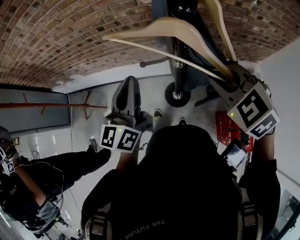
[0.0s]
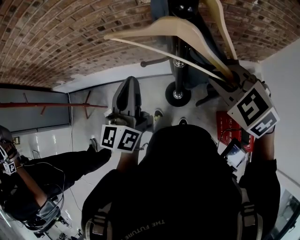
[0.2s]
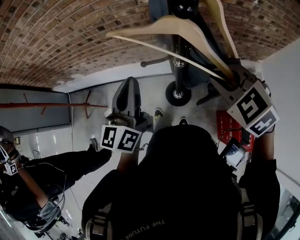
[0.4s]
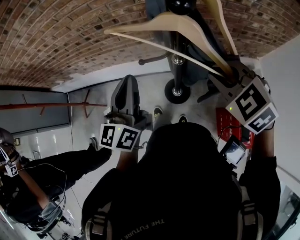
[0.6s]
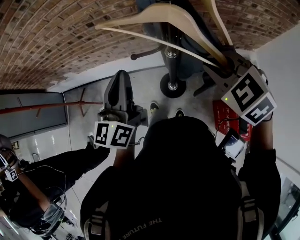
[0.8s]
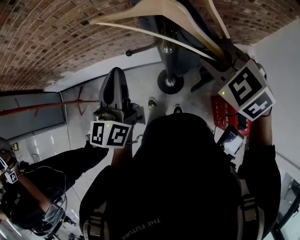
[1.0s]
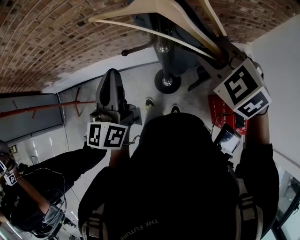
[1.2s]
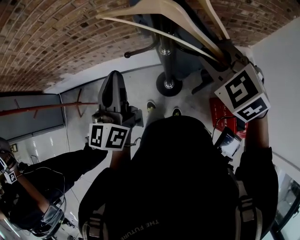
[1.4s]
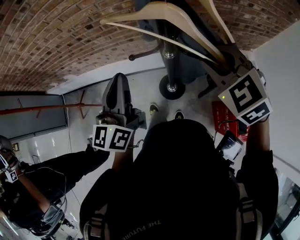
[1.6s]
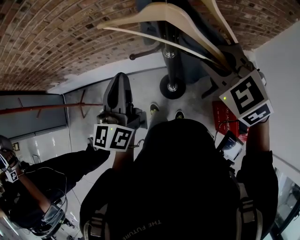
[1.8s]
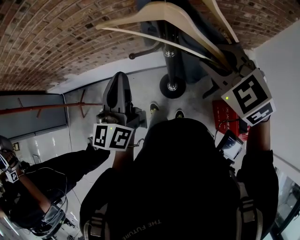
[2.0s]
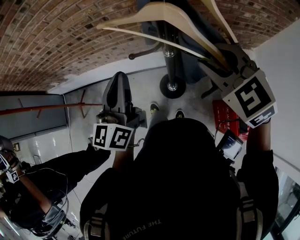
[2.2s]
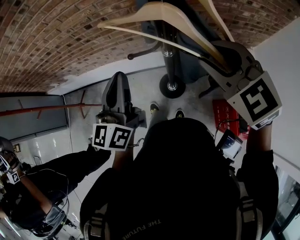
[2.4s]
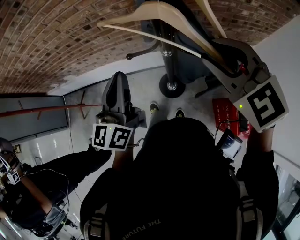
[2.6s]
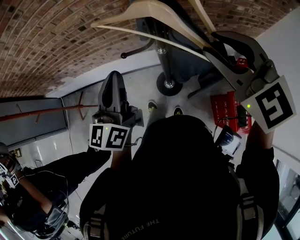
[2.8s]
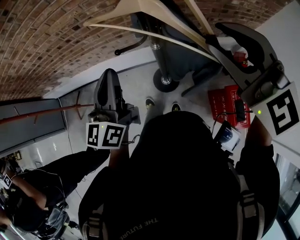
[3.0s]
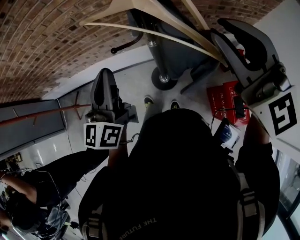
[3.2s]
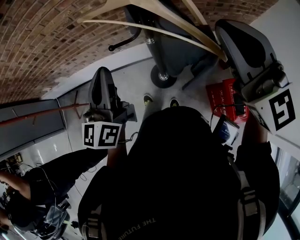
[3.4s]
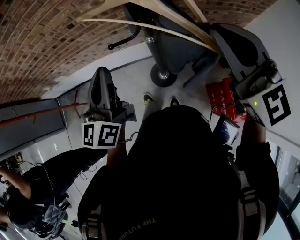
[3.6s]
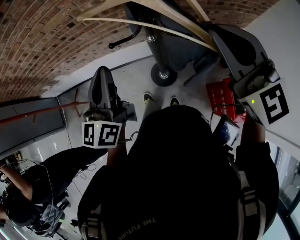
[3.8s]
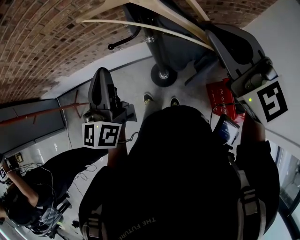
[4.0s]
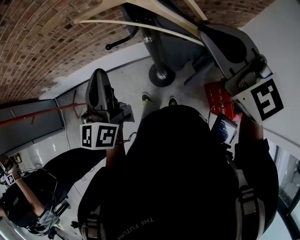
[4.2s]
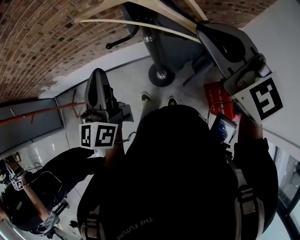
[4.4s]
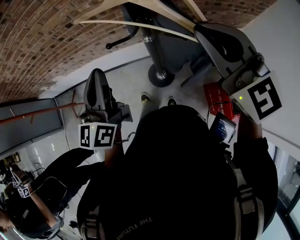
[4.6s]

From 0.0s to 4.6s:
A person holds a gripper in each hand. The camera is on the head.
From 0.0s to 1.6s: There are only small adjustments of the grippers.
From 1.6s to 3.0s: The right gripper is displaced upward by roughly 10 cm, and turns by roughly 30 degrees.
From 3.0s to 4.6s: The right gripper closes up.

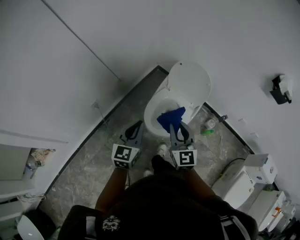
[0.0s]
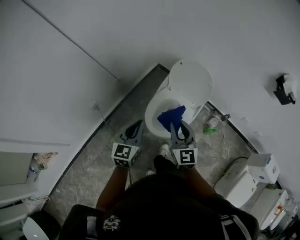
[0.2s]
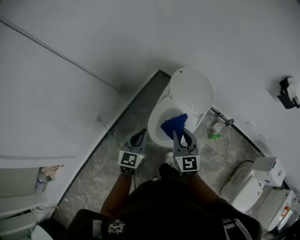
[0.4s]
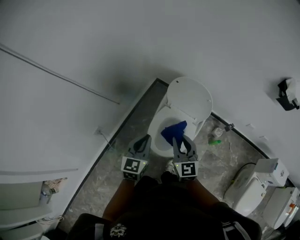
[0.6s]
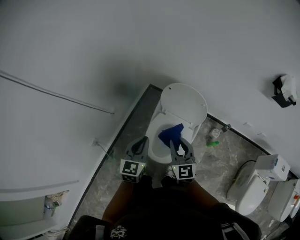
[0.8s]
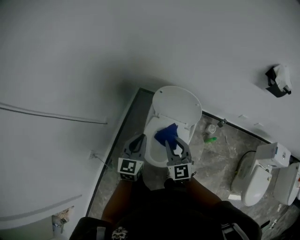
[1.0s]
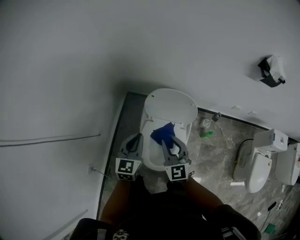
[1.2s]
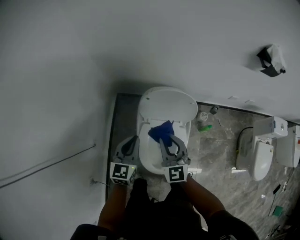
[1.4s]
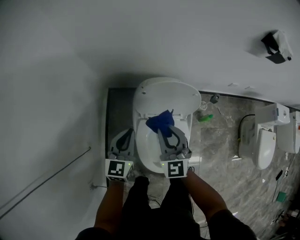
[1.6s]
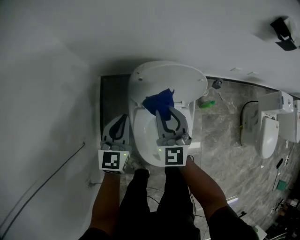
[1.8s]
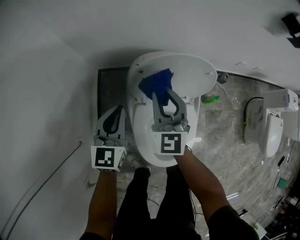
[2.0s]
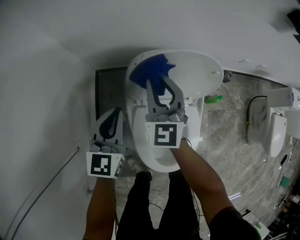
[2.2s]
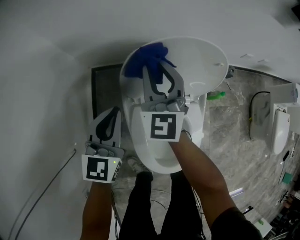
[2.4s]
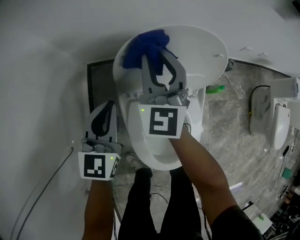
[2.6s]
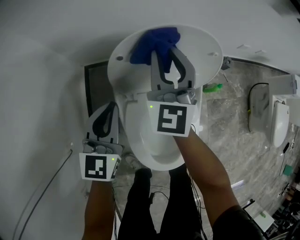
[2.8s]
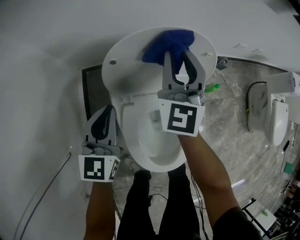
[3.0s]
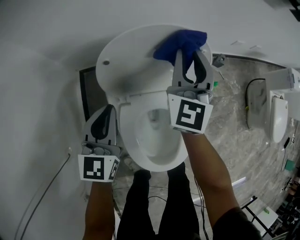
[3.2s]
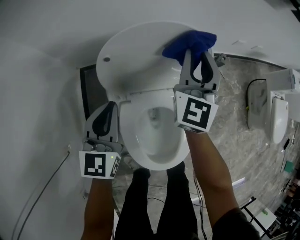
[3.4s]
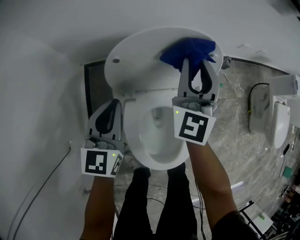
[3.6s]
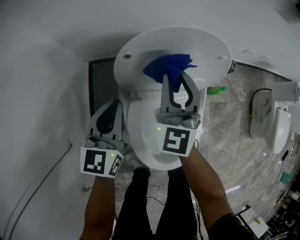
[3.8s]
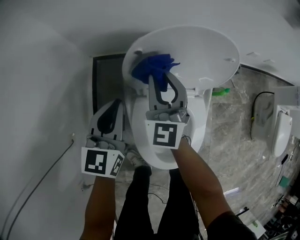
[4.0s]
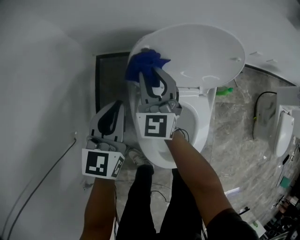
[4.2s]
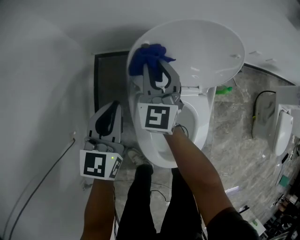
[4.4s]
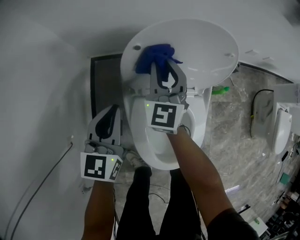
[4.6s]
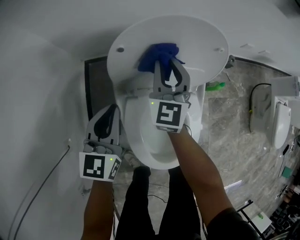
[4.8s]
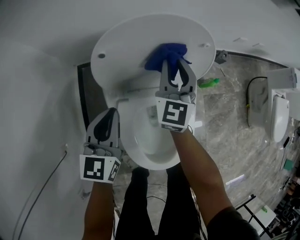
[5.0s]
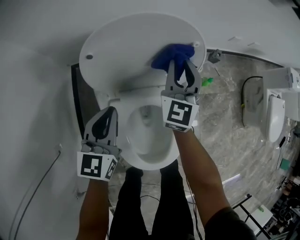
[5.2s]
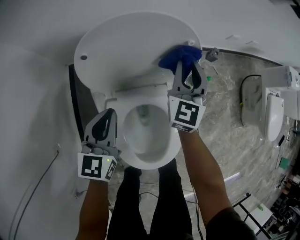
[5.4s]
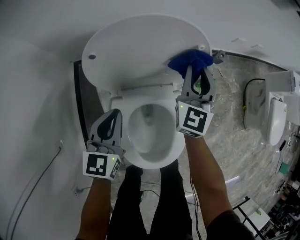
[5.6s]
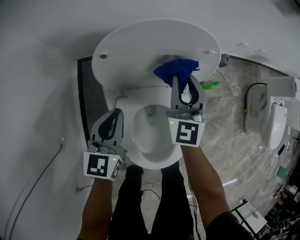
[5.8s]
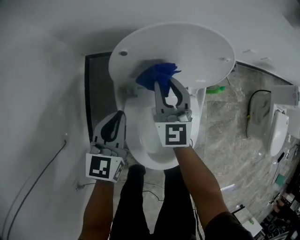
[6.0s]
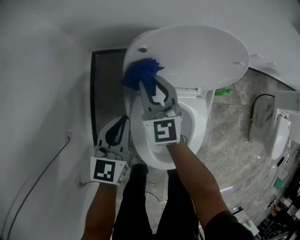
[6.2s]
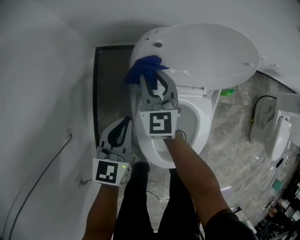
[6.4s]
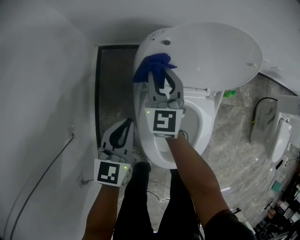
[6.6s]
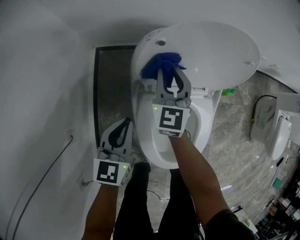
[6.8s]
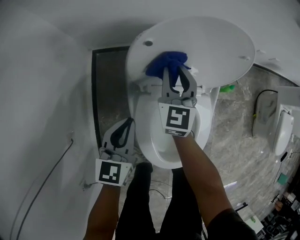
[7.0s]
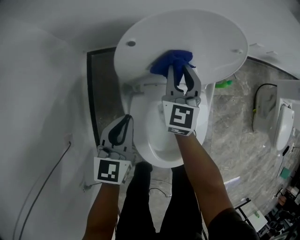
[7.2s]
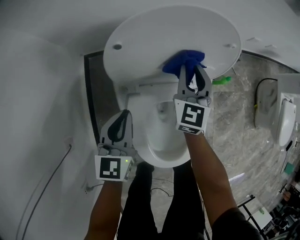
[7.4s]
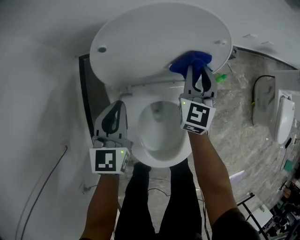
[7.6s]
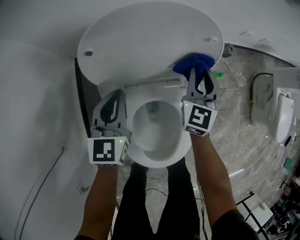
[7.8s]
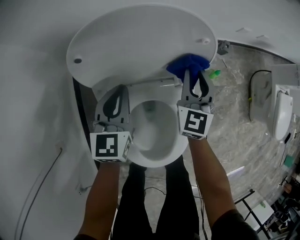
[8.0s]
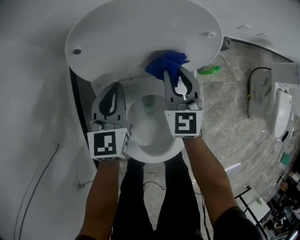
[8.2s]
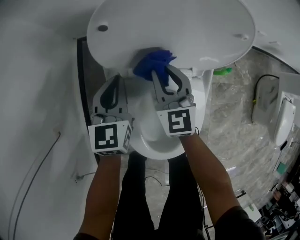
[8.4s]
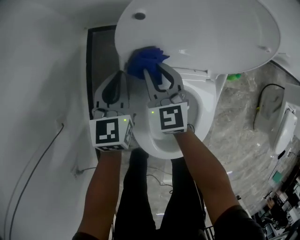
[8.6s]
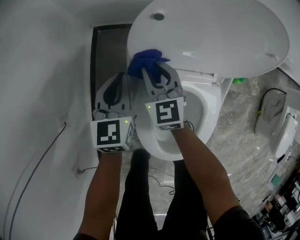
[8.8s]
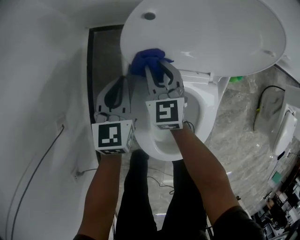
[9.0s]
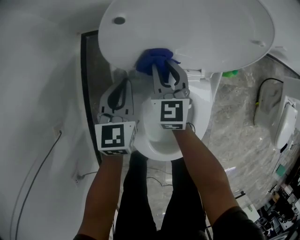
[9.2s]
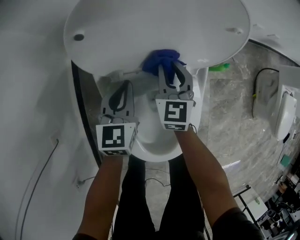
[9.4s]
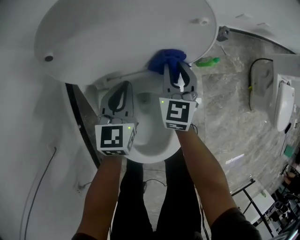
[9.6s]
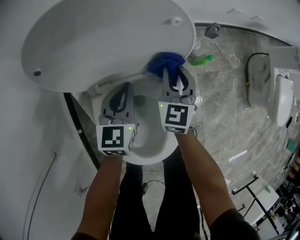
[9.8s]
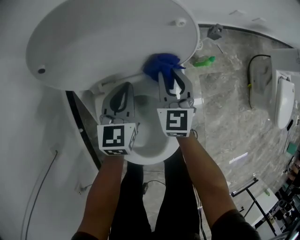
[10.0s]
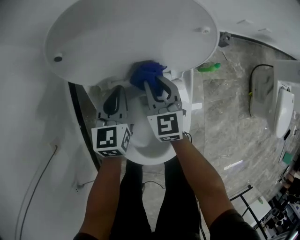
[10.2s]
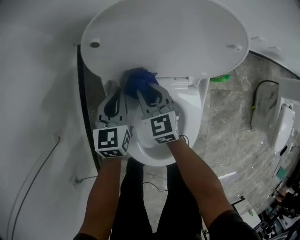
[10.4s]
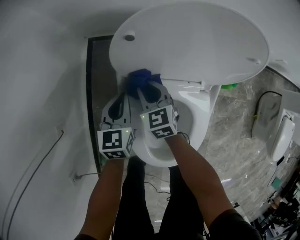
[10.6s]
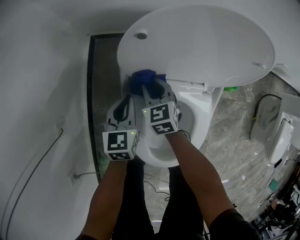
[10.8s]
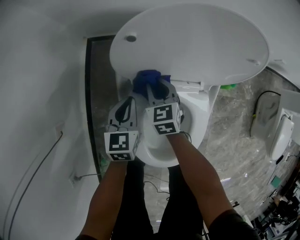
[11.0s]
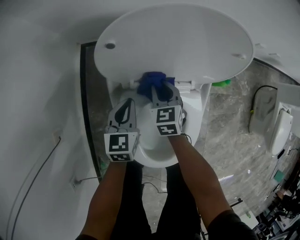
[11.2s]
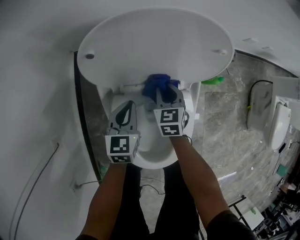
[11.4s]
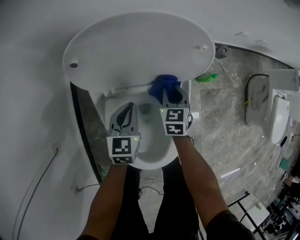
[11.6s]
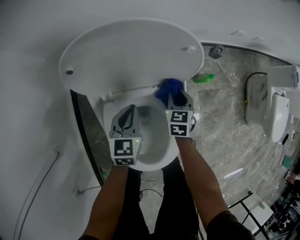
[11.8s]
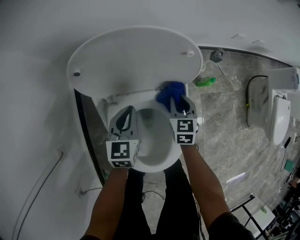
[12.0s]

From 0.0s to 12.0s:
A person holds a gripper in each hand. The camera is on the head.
From 0.0s to 1.6s: The right gripper changes place by about 35 cm, and swivels roughly 30 degrees, while the left gripper ends up about 40 cm from where it was, and changes its angle by roughly 30 degrees.
From 1.6s to 3.0s: The left gripper goes approximately 15 cm downward and forward. The right gripper is displaced forward by roughly 20 cm, and changes its angle by roughly 30 degrees.
From 3.0s to 4.4s: The right gripper goes about 15 cm to the left and downward, while the left gripper shifts by approximately 5 cm.
From 4.4s to 6.0s: The right gripper travels to the right and back again, about 25 cm each way; the left gripper travels to the right by approximately 5 cm.
From 6.0s to 7.6s: The right gripper goes some 15 cm to the right, and rotates about 20 degrees.
From 7.6s to 9.0s: The right gripper ends up roughly 25 cm from where it was, and changes its angle by approximately 30 degrees. Meanwhile the left gripper shifts by some 10 cm.
From 10.4s to 12.0s: The right gripper shifts by approximately 20 cm, and swivels approximately 30 degrees. The left gripper shifts by approximately 10 cm.

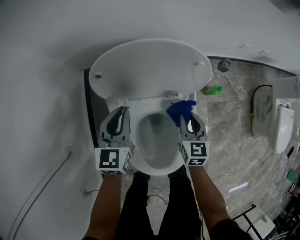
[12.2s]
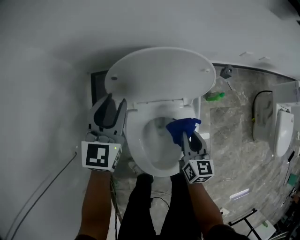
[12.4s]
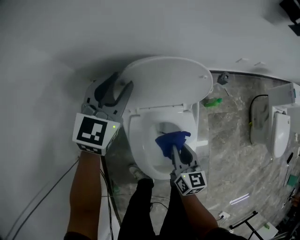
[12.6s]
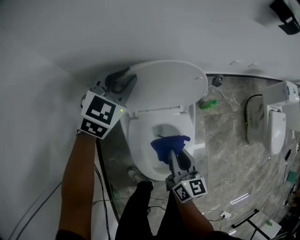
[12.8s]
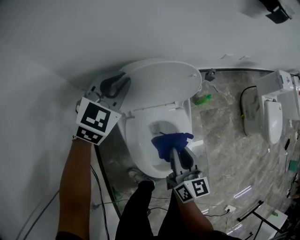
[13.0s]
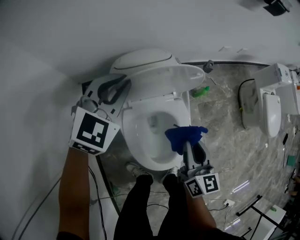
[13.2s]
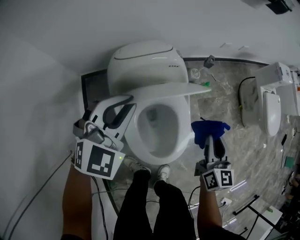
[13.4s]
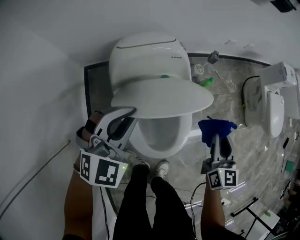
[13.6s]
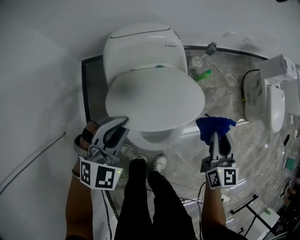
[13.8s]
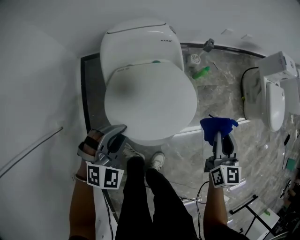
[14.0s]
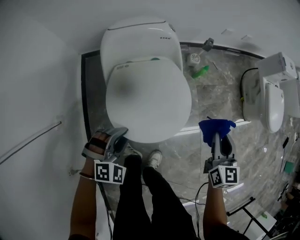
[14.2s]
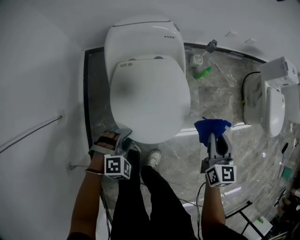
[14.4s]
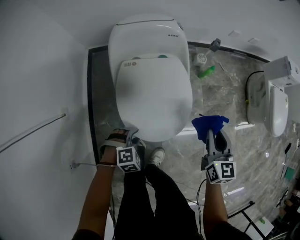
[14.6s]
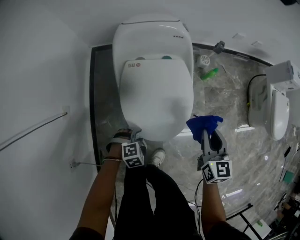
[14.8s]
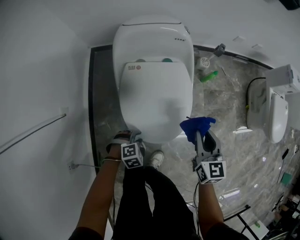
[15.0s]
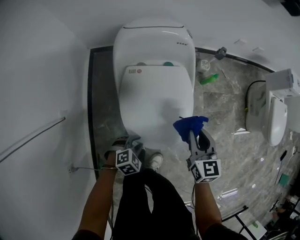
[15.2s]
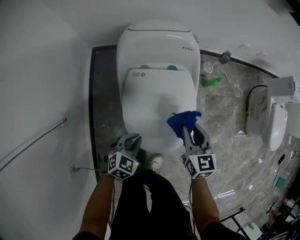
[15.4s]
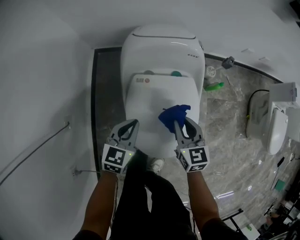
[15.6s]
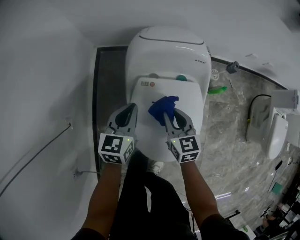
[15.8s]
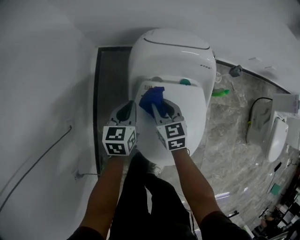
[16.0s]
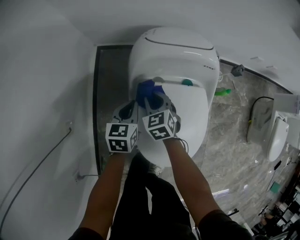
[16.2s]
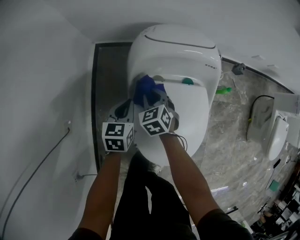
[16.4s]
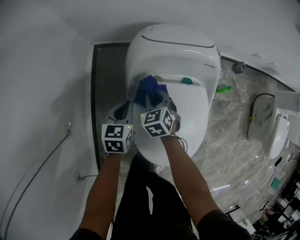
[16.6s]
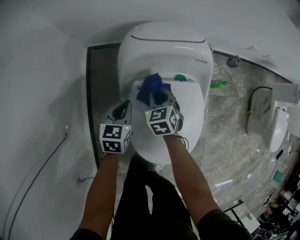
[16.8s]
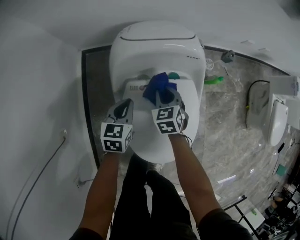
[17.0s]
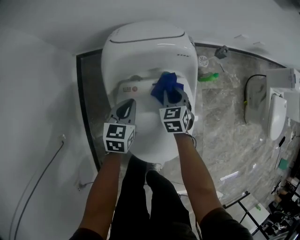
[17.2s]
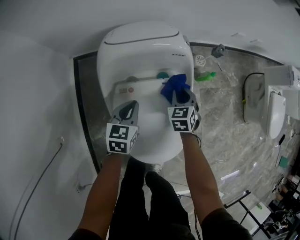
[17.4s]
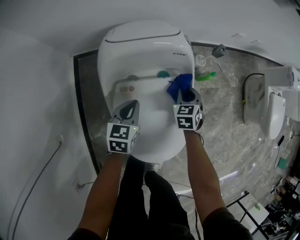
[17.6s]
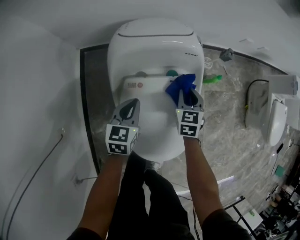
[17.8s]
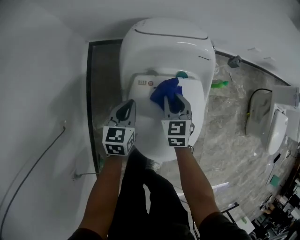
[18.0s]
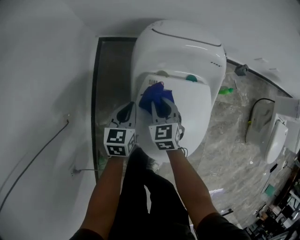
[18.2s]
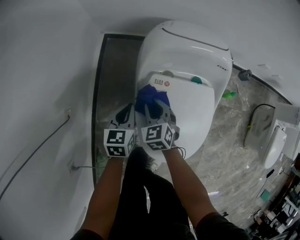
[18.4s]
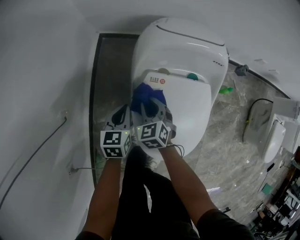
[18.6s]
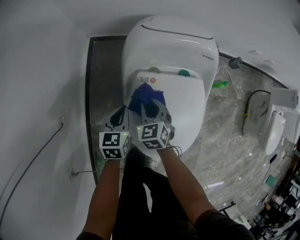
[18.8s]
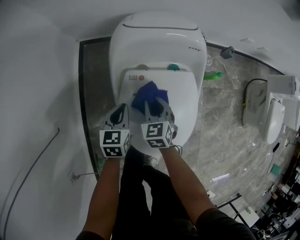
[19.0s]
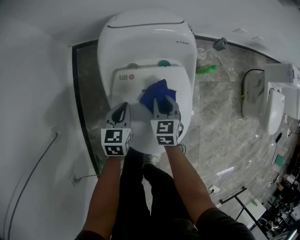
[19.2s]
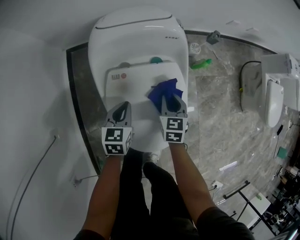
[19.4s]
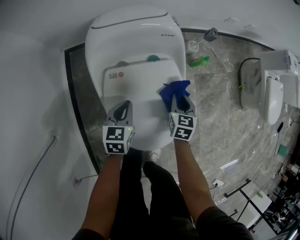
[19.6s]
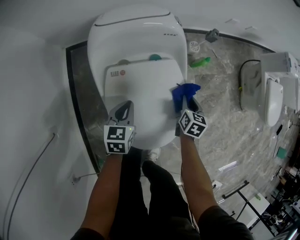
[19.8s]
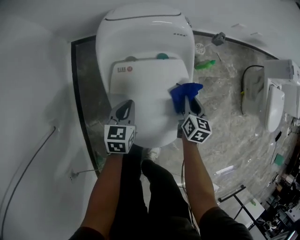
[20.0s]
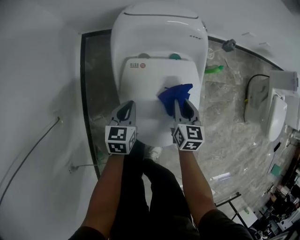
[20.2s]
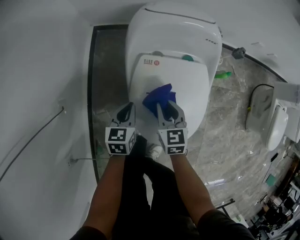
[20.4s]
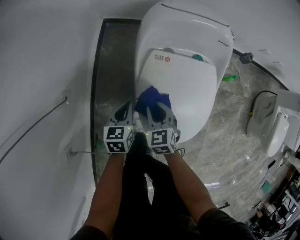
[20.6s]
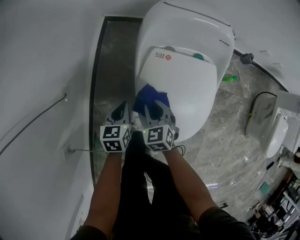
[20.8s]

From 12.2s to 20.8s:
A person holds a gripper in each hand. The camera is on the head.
From 12.2s to 13.6s: The left gripper travels upward and backward by approximately 15 cm, twists some 50 degrees clockwise, seen from behind, and opens, then closes again. The right gripper goes roughly 25 cm upward, backward and to the right, and rotates roughly 20 degrees.
From 13.6s to 15.0s: The left gripper goes approximately 40 cm downward and backward, tilts its fingers roughly 50 degrees downward, and opens its fingers. Meanwhile the right gripper travels downward and backward by approximately 10 cm, and moves about 10 cm to the right and comes back.
From 15.0s to 16.6s: The right gripper moves about 40 cm, and rotates roughly 40 degrees. Meanwhile the left gripper shifts by some 30 cm, rolls counterclockwise, seen from behind, by about 70 degrees, and closes.
From 16.6s to 18.0s: The left gripper travels to the right and back again, about 10 cm each way. Meanwhile the right gripper heads to the right, covering roughly 10 cm.
From 18.0s to 19.4s: The left gripper goes about 5 cm to the right, while the right gripper shifts roughly 10 cm to the right and backward.
From 19.4s to 20.8s: The left gripper moves about 15 cm, and changes its angle by roughly 20 degrees, while the right gripper moves some 25 cm, and turns by approximately 40 degrees.
